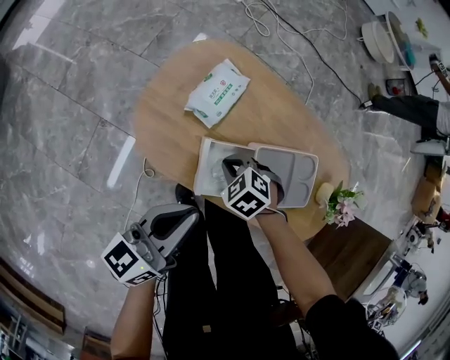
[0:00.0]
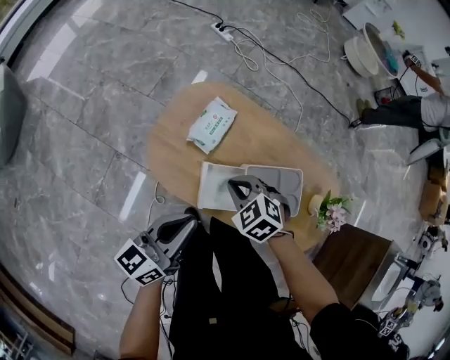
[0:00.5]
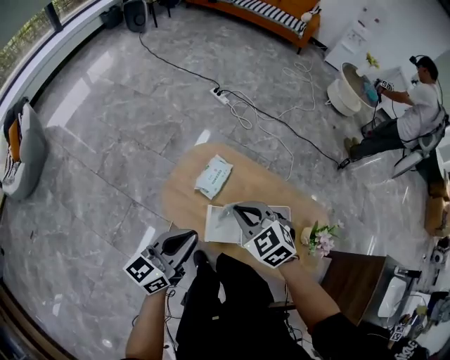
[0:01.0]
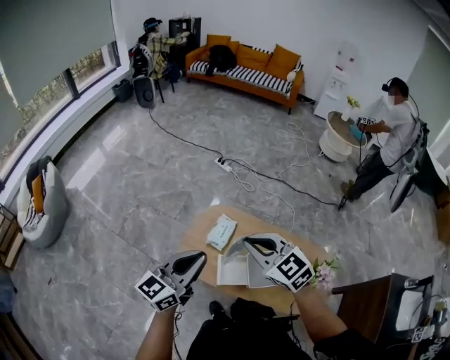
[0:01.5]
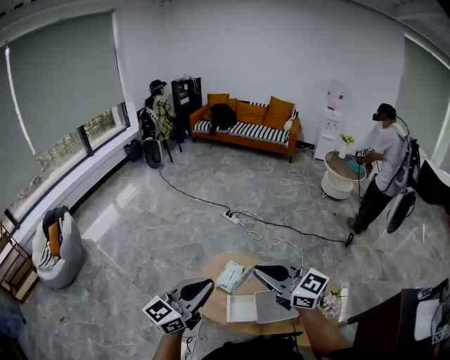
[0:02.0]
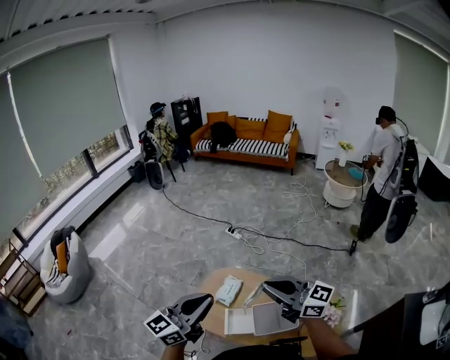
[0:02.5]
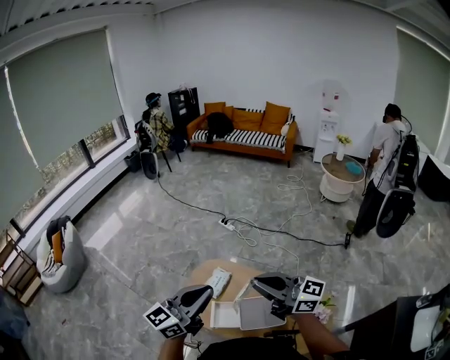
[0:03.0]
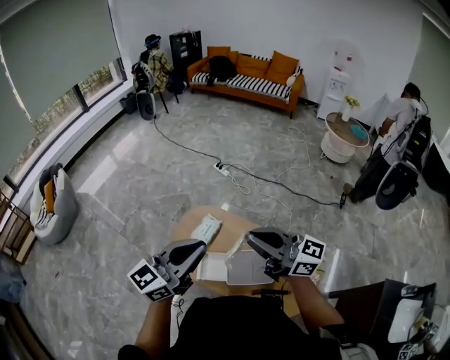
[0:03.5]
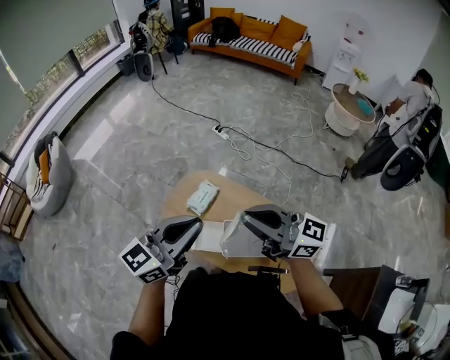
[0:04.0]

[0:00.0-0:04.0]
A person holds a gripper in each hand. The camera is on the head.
0:00.0 to 0:02.0: The left gripper shifts roughly 40 cm upward, and changes its angle by approximately 30 degrees; the right gripper heads upward, covering approximately 60 cm, and tilts its fingers about 70 degrees upward.
0:02.0 to 0:04.0: The two grippers go approximately 15 cm to the right. The right gripper rotates roughly 30 degrees.

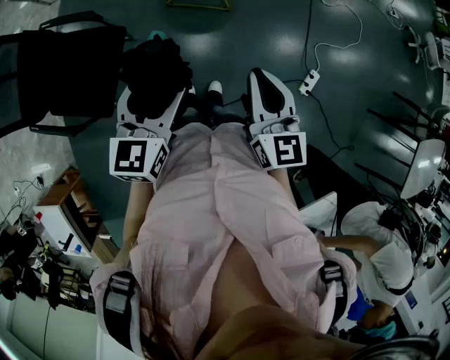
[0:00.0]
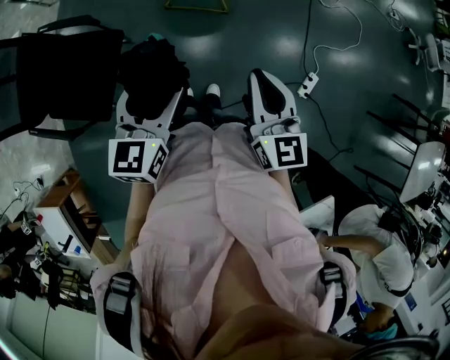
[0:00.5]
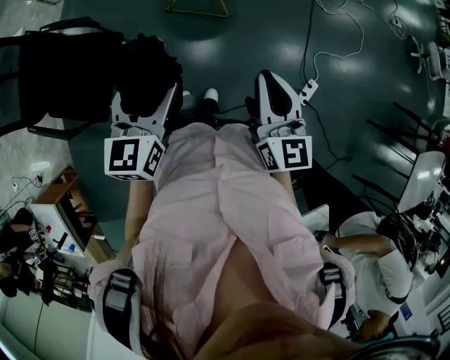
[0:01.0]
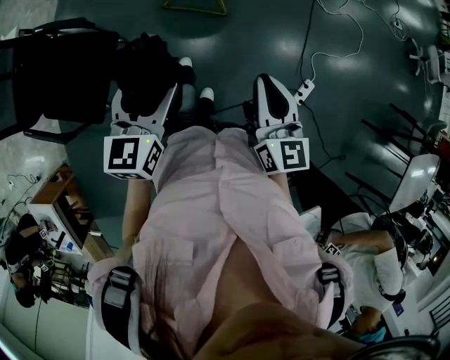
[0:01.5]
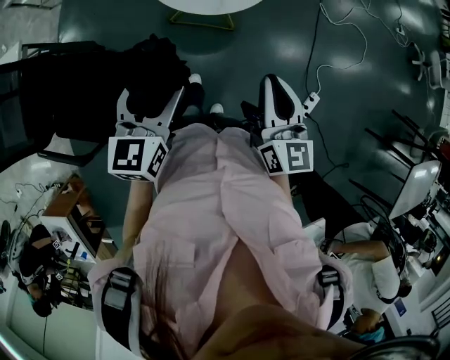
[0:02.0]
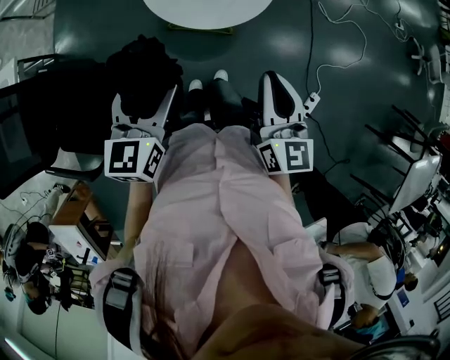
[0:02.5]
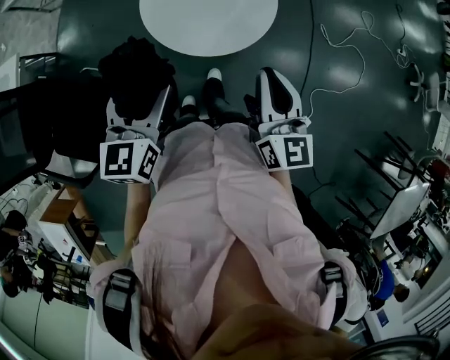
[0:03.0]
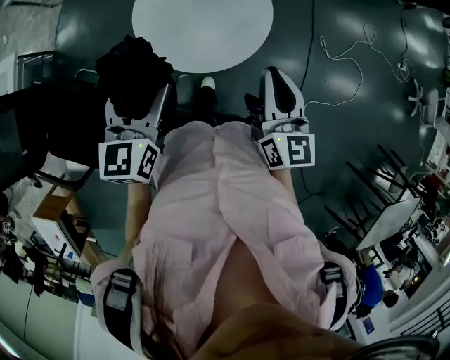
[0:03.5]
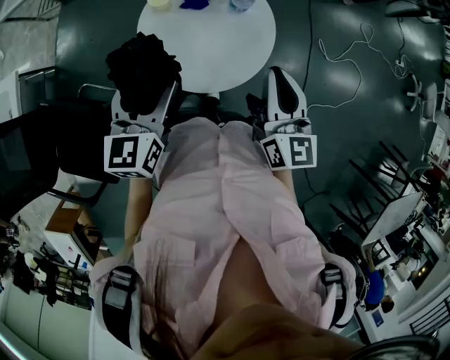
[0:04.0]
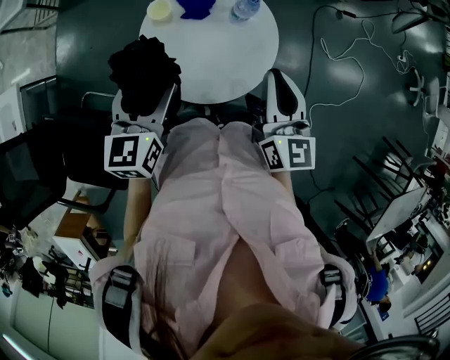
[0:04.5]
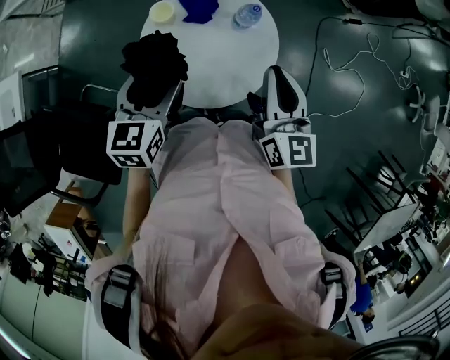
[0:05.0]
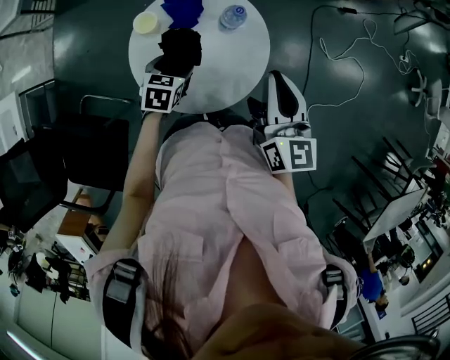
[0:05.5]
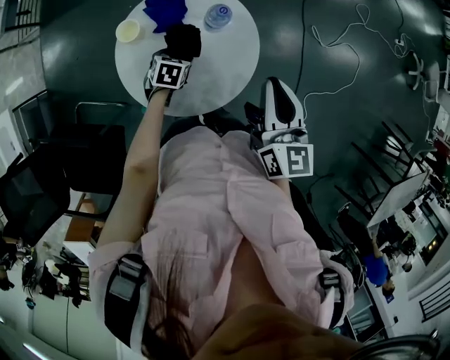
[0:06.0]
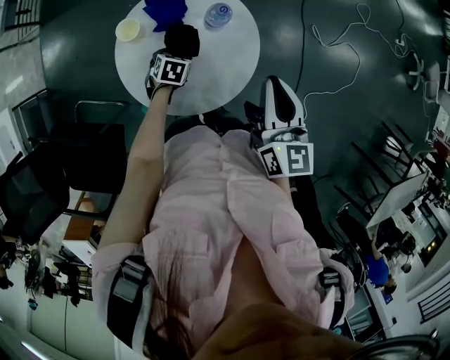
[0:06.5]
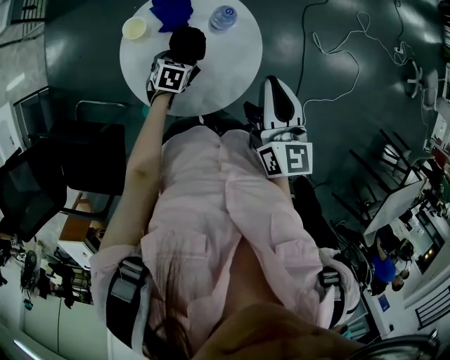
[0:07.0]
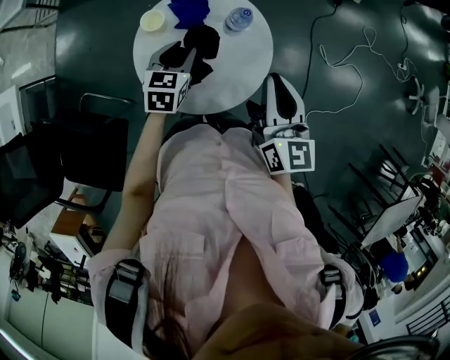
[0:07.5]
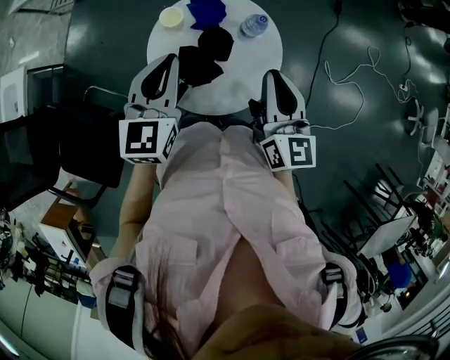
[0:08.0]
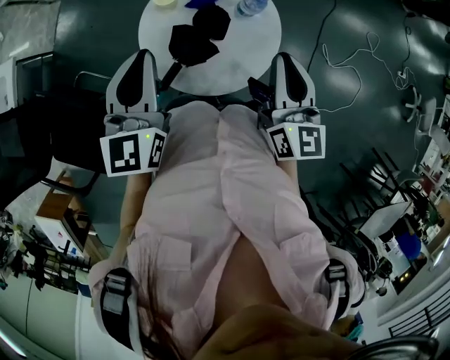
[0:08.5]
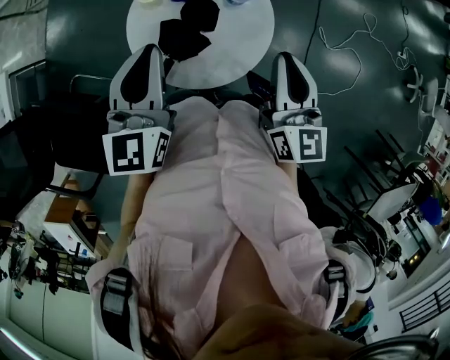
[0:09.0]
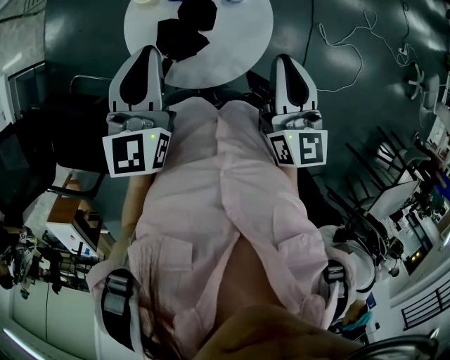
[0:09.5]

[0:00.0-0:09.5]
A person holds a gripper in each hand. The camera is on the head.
0:00.0 to 0:02.0: Both grippers travel together forward, about 15 cm.
0:02.0 to 0:04.0: The two grippers go roughly 30 cm forward.
0:04.0 to 0:05.5: The left gripper heads downward and forward, covering approximately 25 cm, and points its fingers about 30 degrees further downward, while the right gripper goes about 10 cm forward.
0:05.5 to 0:07.5: The left gripper goes downward and returns, about 10 cm each way, and closes up.
0:07.5 to 0:09.5: The left gripper travels upward and backward by about 20 cm, swivels some 30 degrees, and closes.

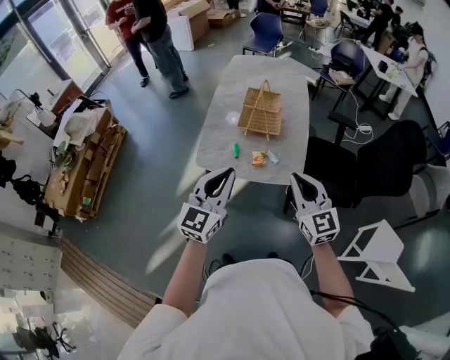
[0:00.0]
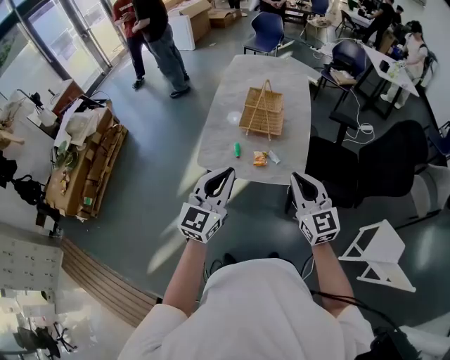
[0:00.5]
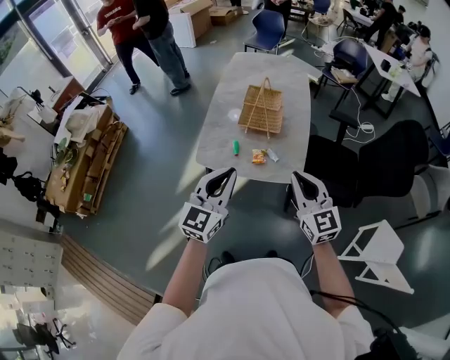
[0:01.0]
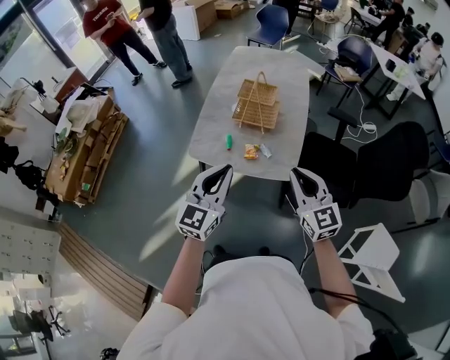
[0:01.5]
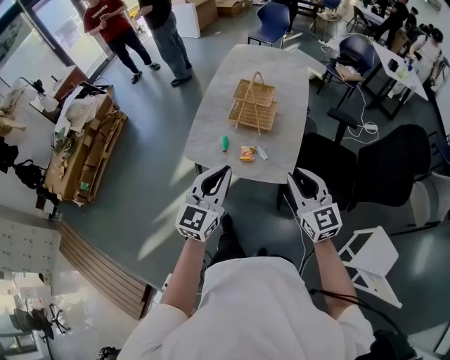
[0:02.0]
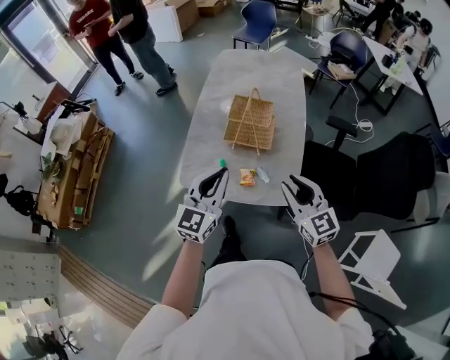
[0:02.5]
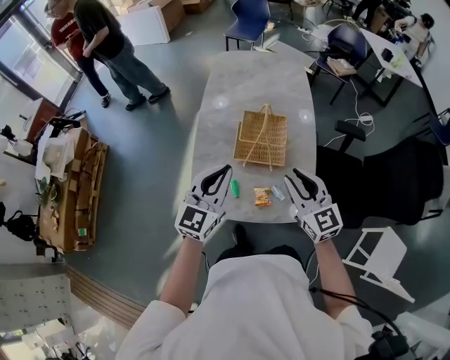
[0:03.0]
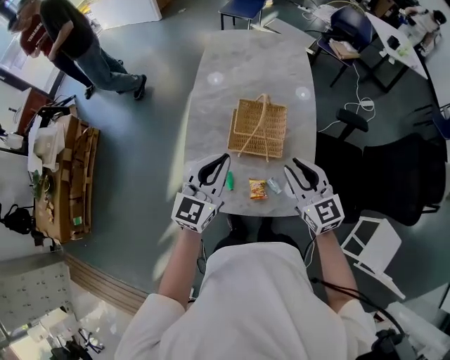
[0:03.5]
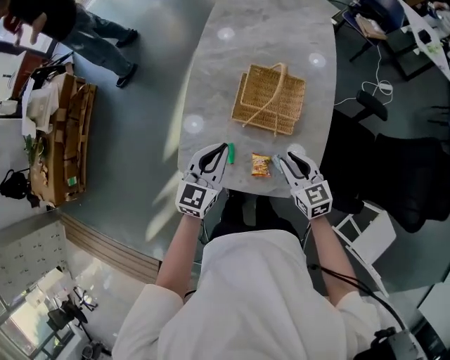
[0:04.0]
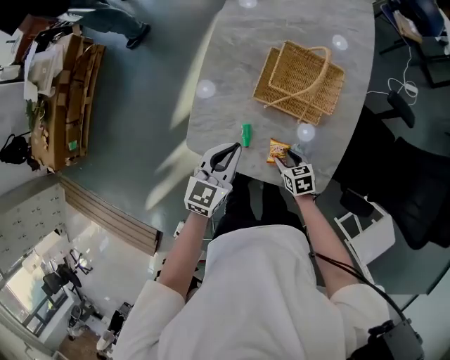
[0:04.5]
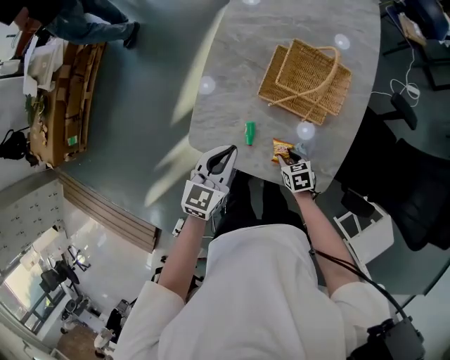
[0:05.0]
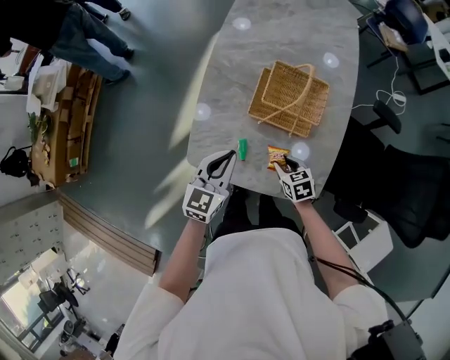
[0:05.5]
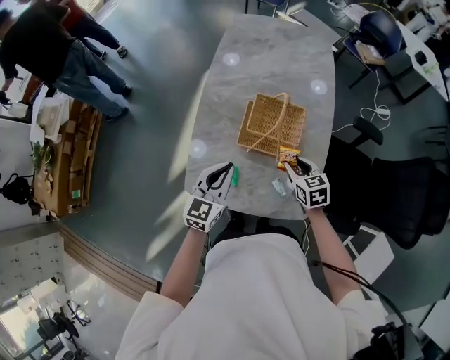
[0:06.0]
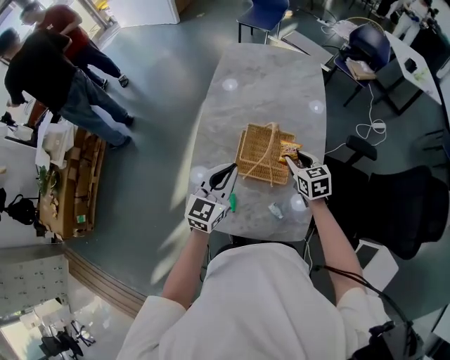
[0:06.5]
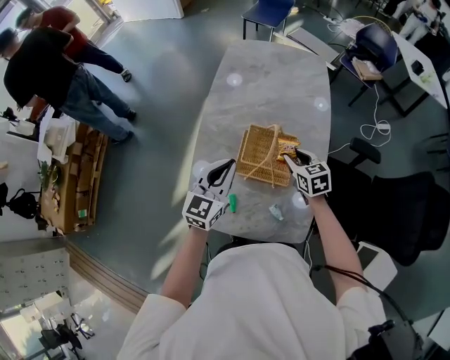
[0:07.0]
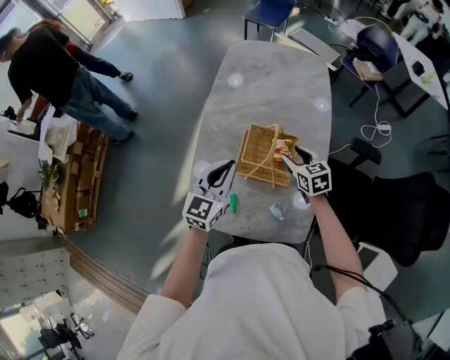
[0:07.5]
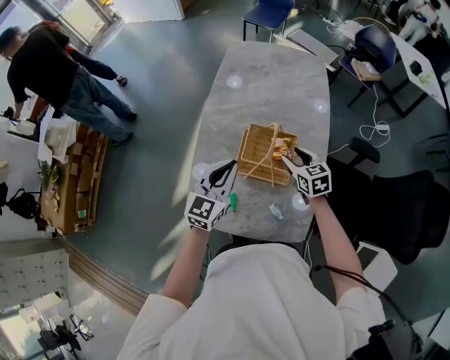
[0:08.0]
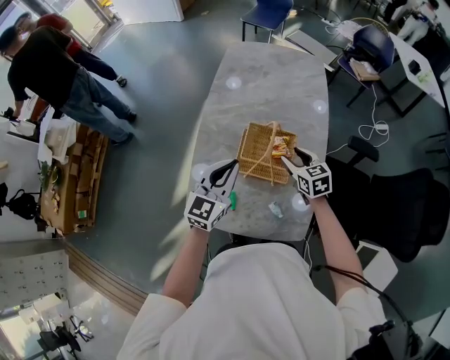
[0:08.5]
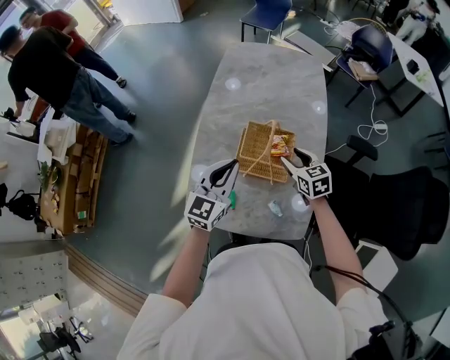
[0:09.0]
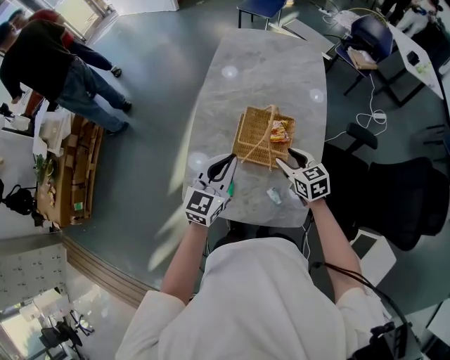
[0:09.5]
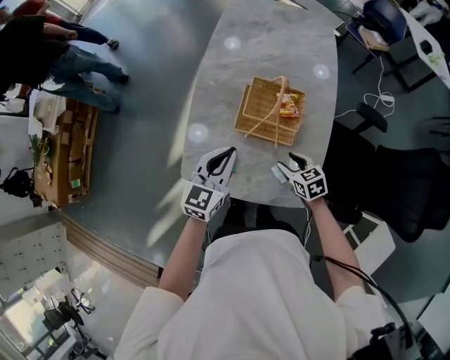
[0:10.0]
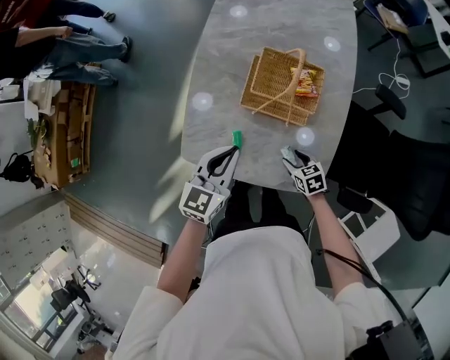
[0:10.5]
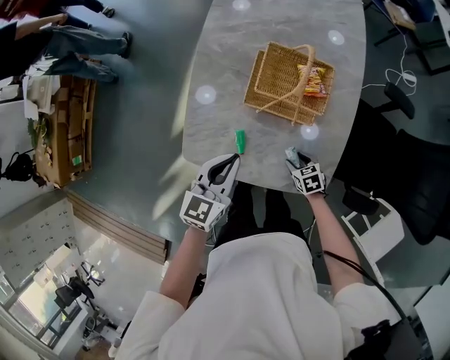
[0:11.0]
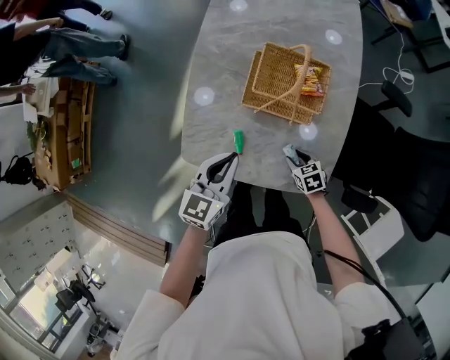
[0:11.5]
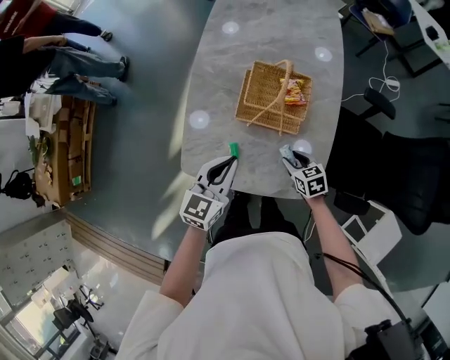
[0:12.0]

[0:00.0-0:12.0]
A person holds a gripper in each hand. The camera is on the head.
0:00.0 to 0:02.0: The grippers both shift to the right by approximately 10 cm.
0:02.0 to 0:04.0: The two grippers go approximately 35 cm forward and downward. The right gripper swivels about 30 degrees.
0:04.0 to 0:06.0: The right gripper travels forward by approximately 5 cm, and reaches approximately 25 cm downward, then returns. Meanwhile the left gripper travels downward and back again, about 10 cm each way.
0:06.0 to 0:08.0: The right gripper moves forward, roughly 10 cm, while the left gripper moves forward and upward, some 10 cm.
0:08.0 to 0:10.0: The left gripper moves backward and downward, about 10 cm; the right gripper heads backward and downward, covering roughly 20 cm.
0:10.0 to 0:12.0: The right gripper travels downward and back again, approximately 20 cm each way.

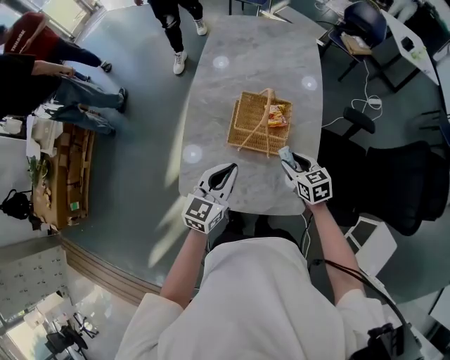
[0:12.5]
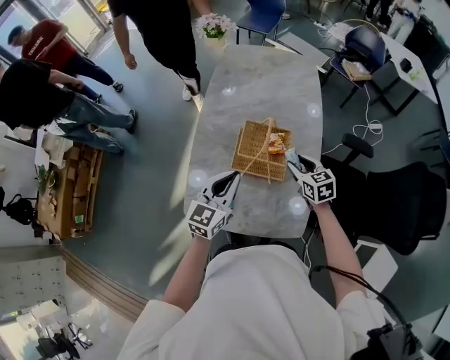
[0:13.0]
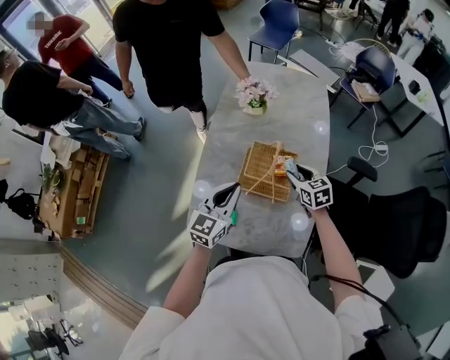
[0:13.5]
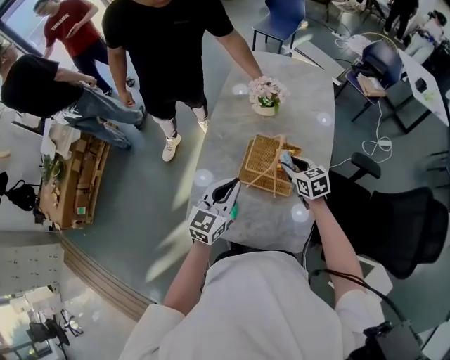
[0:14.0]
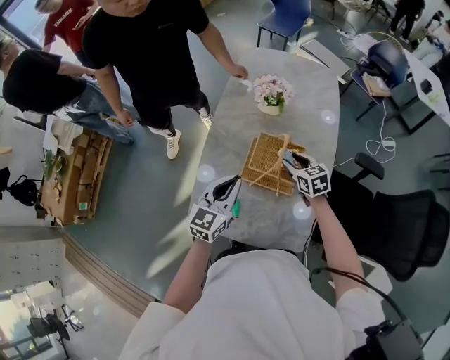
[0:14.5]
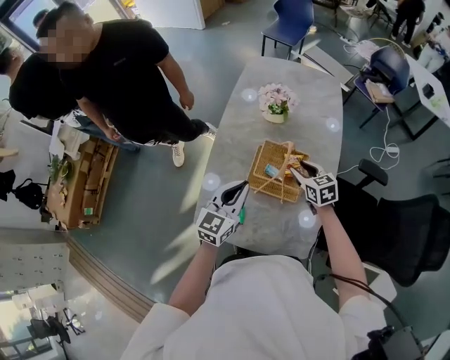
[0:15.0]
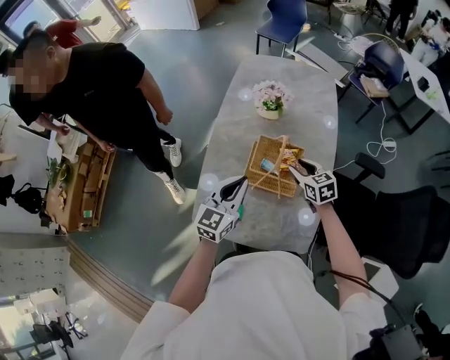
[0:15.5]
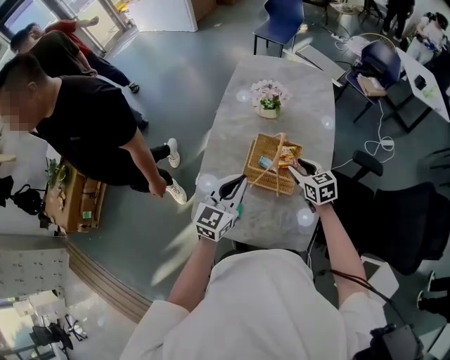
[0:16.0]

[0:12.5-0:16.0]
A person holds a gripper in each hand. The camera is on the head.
0:12.5 to 0:14.5: The right gripper heads forward, covering approximately 15 cm, while the left gripper moves forward, about 10 cm.
0:14.5 to 0:16.0: The right gripper ends up about 5 cm from where it was.
